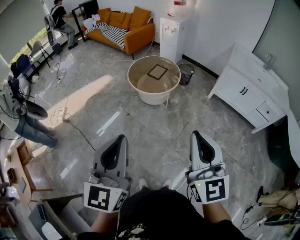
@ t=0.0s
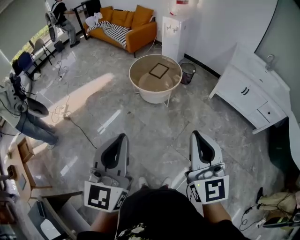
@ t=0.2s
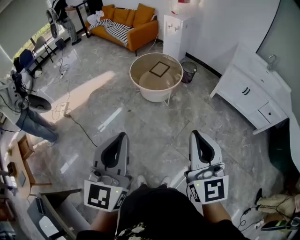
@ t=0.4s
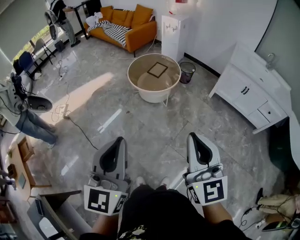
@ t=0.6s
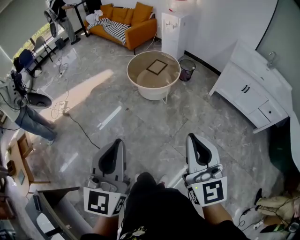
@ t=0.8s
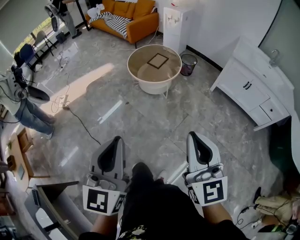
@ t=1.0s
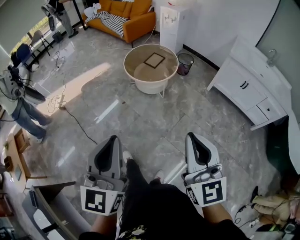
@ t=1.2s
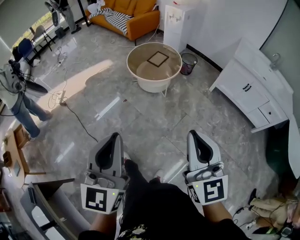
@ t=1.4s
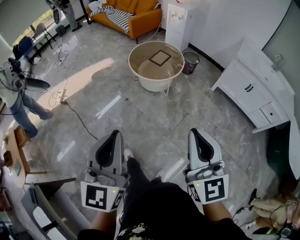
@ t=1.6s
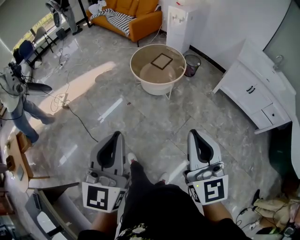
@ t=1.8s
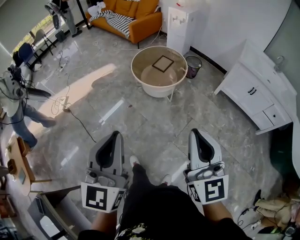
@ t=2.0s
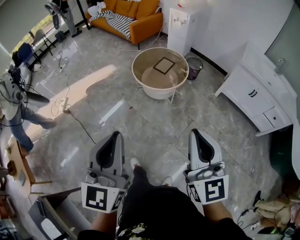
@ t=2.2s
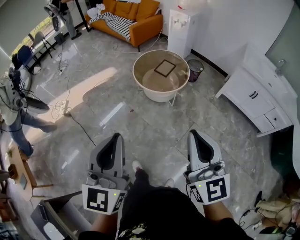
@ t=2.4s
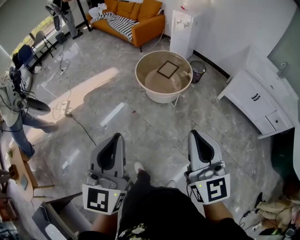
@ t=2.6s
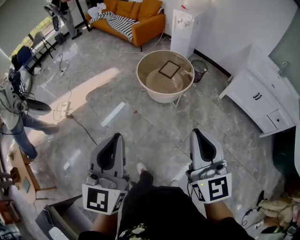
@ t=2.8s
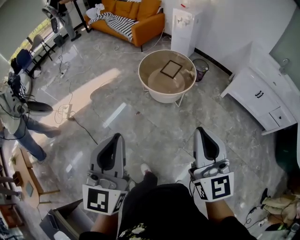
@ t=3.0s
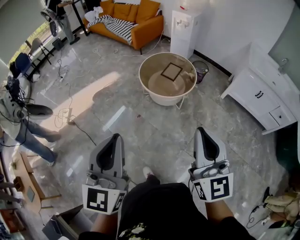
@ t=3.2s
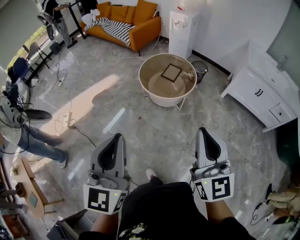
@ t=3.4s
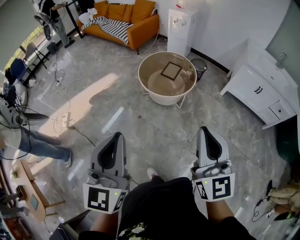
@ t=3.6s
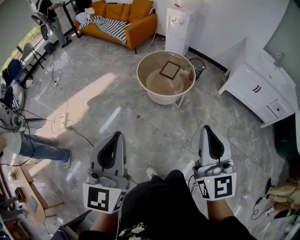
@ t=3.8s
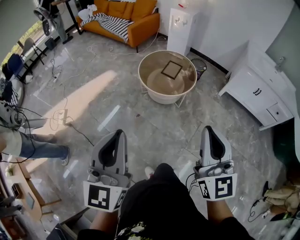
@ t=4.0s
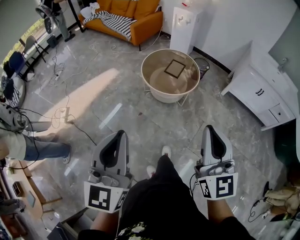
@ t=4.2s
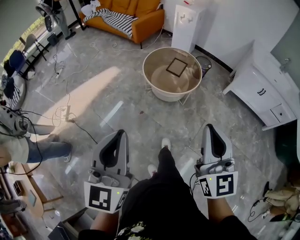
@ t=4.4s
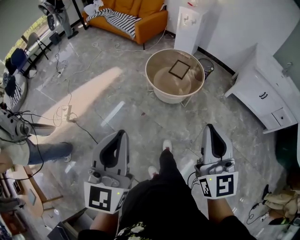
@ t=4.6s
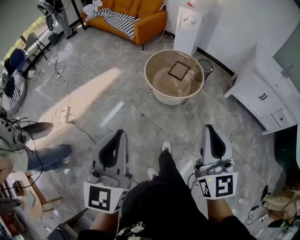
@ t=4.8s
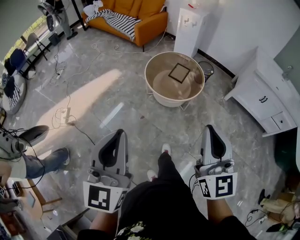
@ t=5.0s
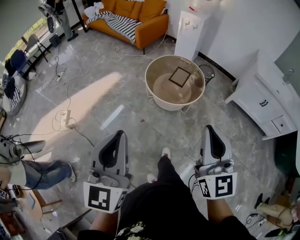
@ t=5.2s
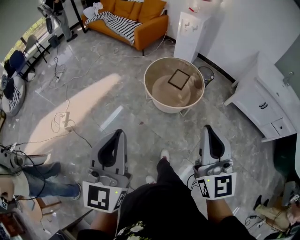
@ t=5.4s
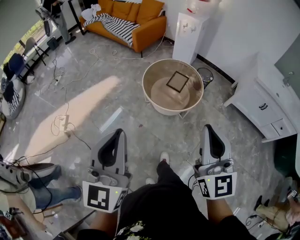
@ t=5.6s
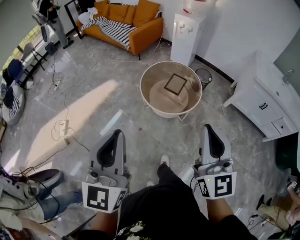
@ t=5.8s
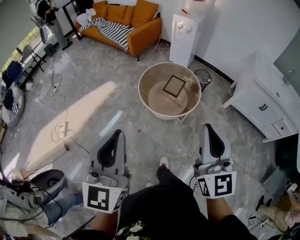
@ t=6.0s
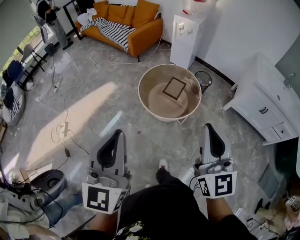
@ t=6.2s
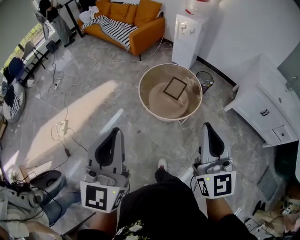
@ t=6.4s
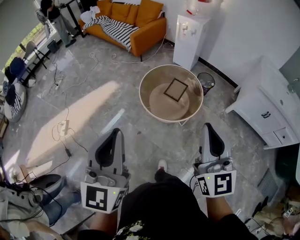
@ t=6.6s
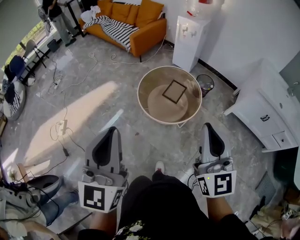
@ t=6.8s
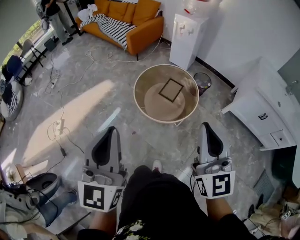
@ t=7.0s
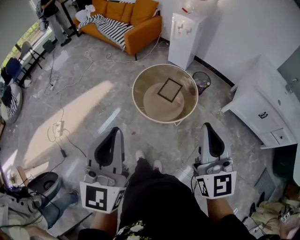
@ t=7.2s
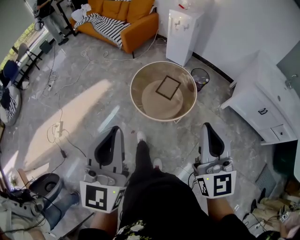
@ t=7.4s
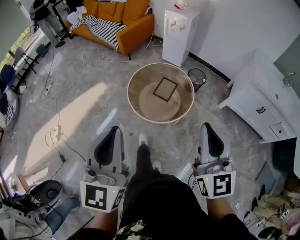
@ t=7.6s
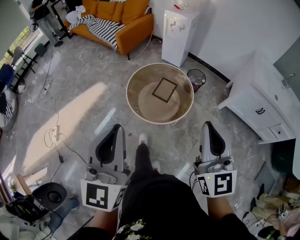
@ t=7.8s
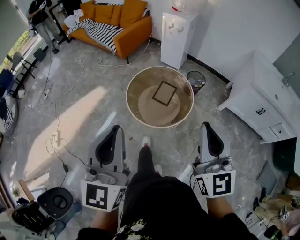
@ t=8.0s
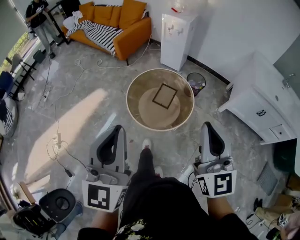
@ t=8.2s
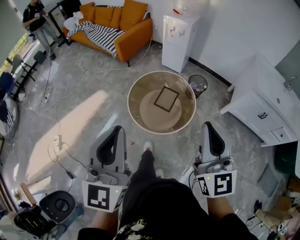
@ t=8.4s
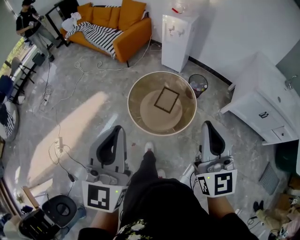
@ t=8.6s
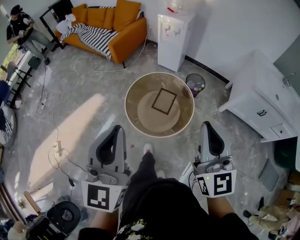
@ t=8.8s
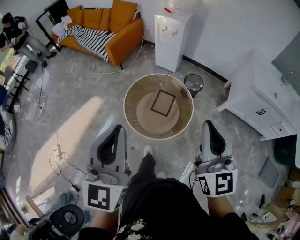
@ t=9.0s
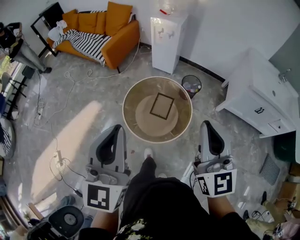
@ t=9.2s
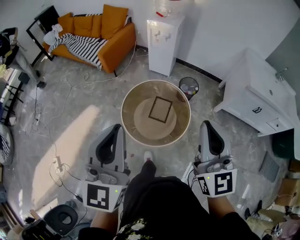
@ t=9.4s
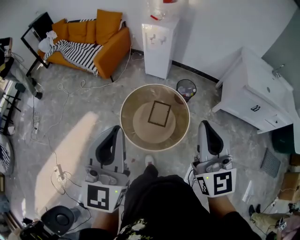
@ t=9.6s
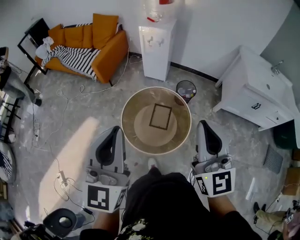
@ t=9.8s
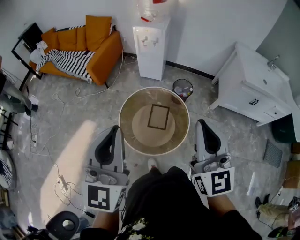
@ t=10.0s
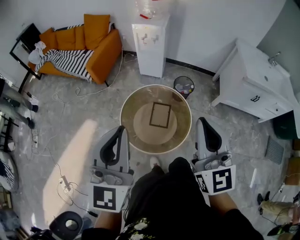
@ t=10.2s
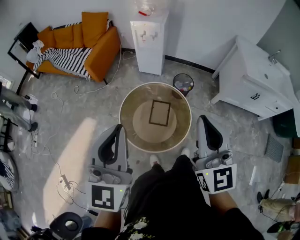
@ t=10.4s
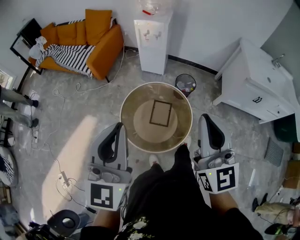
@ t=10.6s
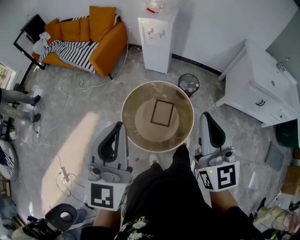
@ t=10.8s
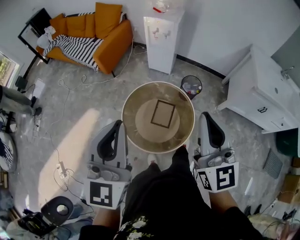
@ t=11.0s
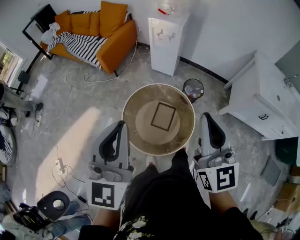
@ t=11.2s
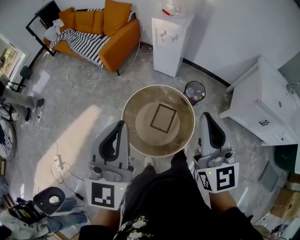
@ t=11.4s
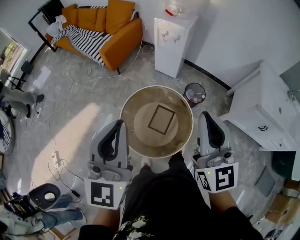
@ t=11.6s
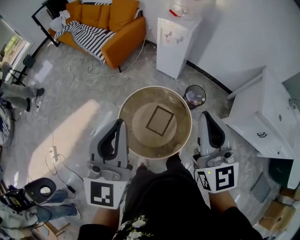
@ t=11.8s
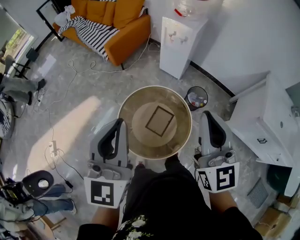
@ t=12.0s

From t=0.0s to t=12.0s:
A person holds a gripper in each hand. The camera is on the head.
From t=0.0s to t=1.6s: The right gripper changes place by about 5 cm, while the left gripper changes place by roughly 5 cm.
From t=1.6s to t=3.0s: Both grippers travel together forward and to the left, some 20 cm.
From t=3.0s to t=4.4s: The two grippers go roughly 15 cm to the left and forward.
From t=4.4s to t=6.0s: The two grippers go about 20 cm forward.
From t=6.0s to t=7.6s: Both grippers travel together forward and to the right, about 15 cm.
From t=7.6s to t=9.0s: Both grippers move forward, about 20 cm.
From t=9.0s to t=10.4s: The right gripper travels forward and to the left by some 15 cm, while the left gripper heads forward, covering roughly 15 cm.
From t=10.4s to t=12.0s: The two grippers go about 15 cm forward and to the right. The left gripper changes its angle by approximately 20 degrees. Meanwhile the right gripper turns by approximately 20 degrees.

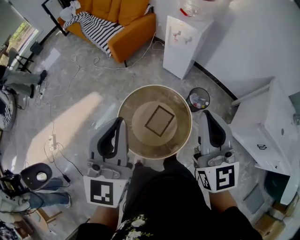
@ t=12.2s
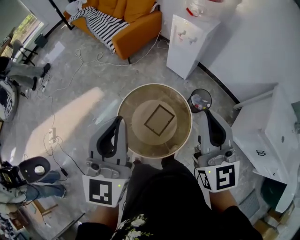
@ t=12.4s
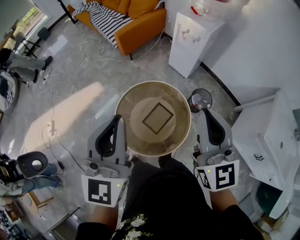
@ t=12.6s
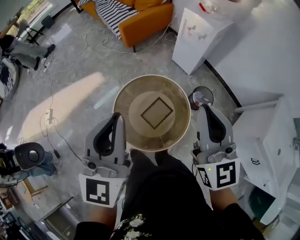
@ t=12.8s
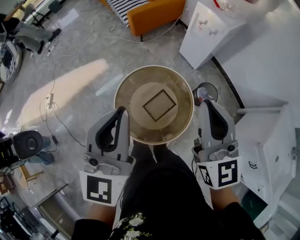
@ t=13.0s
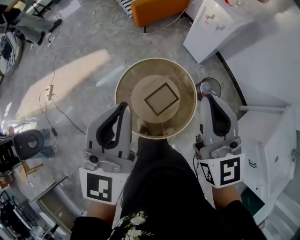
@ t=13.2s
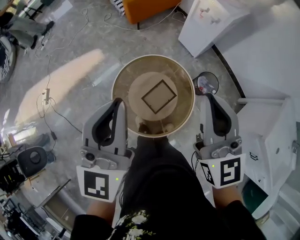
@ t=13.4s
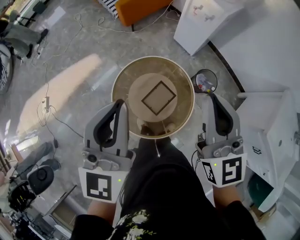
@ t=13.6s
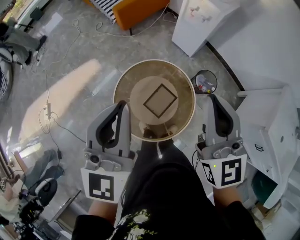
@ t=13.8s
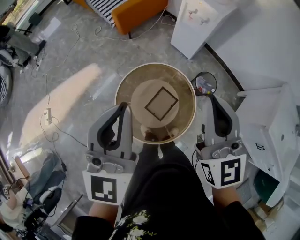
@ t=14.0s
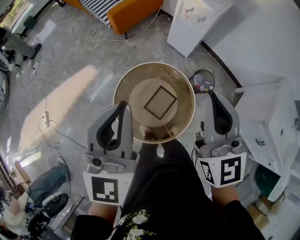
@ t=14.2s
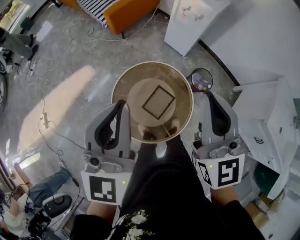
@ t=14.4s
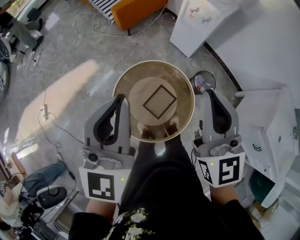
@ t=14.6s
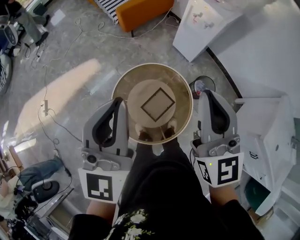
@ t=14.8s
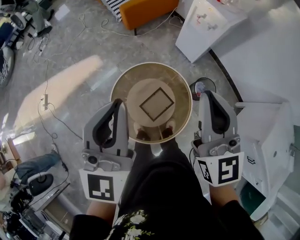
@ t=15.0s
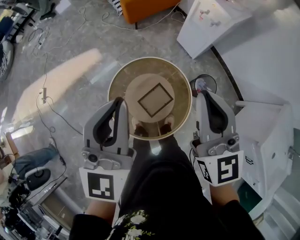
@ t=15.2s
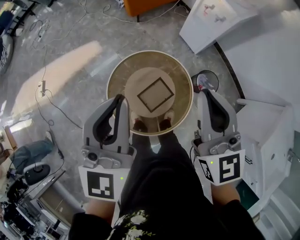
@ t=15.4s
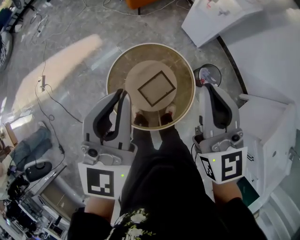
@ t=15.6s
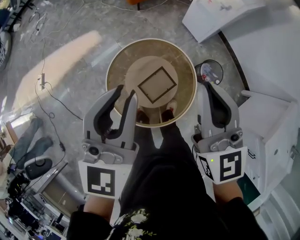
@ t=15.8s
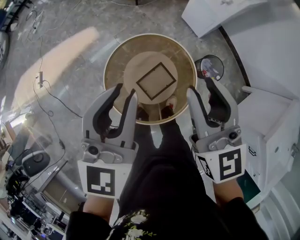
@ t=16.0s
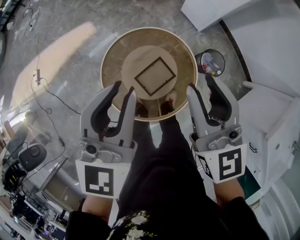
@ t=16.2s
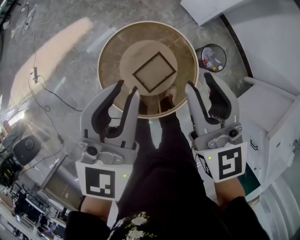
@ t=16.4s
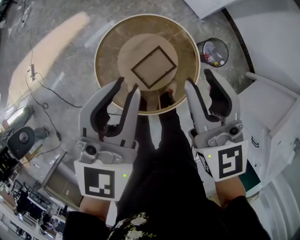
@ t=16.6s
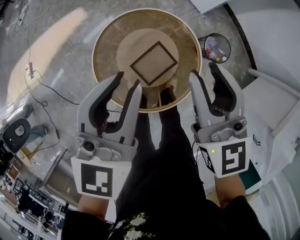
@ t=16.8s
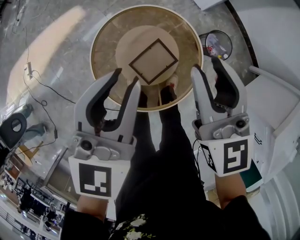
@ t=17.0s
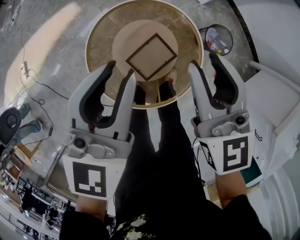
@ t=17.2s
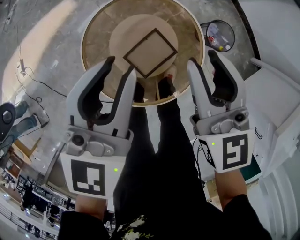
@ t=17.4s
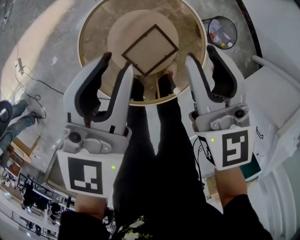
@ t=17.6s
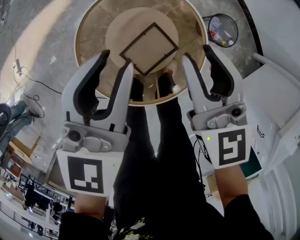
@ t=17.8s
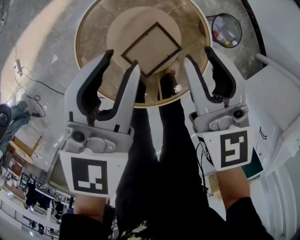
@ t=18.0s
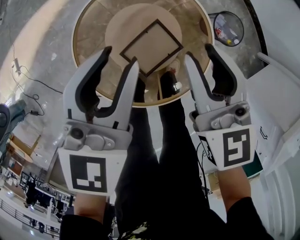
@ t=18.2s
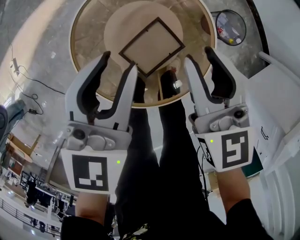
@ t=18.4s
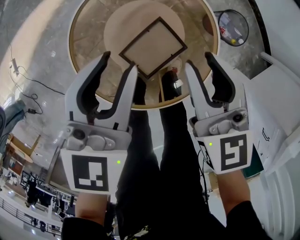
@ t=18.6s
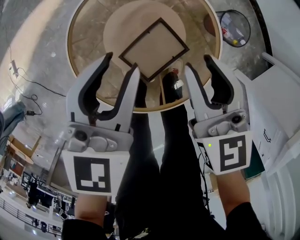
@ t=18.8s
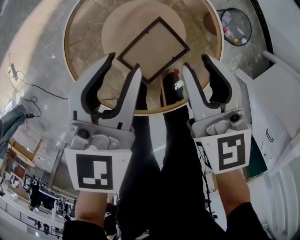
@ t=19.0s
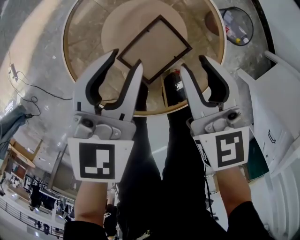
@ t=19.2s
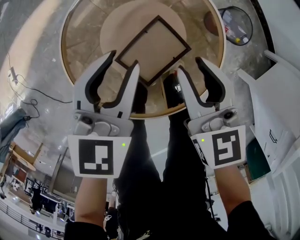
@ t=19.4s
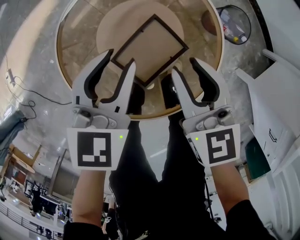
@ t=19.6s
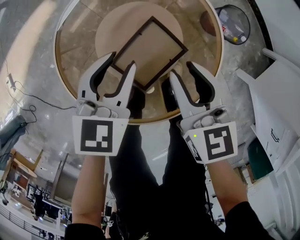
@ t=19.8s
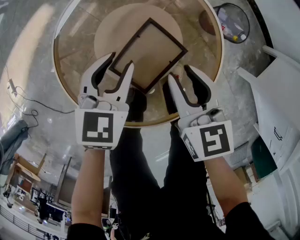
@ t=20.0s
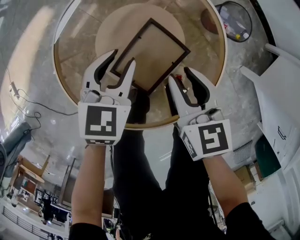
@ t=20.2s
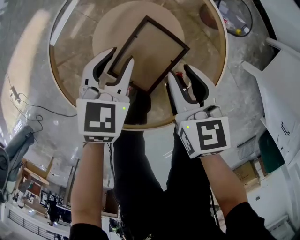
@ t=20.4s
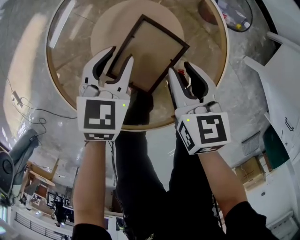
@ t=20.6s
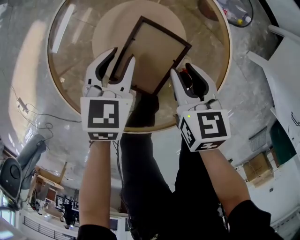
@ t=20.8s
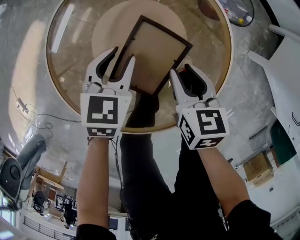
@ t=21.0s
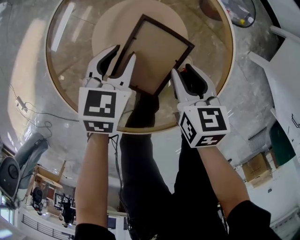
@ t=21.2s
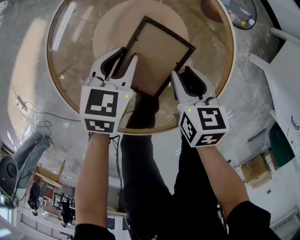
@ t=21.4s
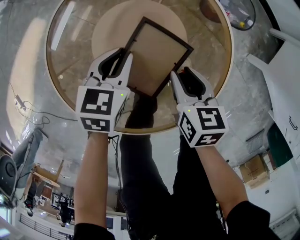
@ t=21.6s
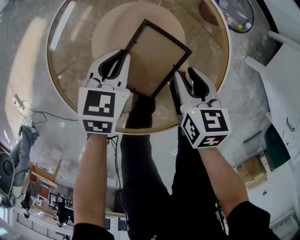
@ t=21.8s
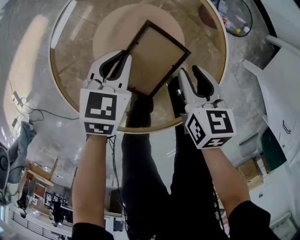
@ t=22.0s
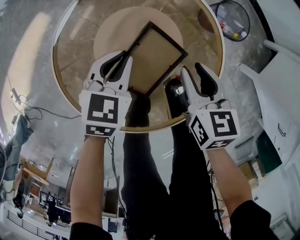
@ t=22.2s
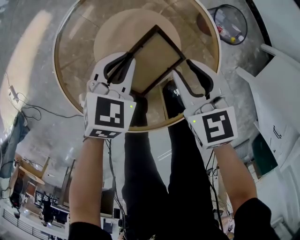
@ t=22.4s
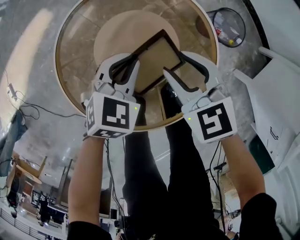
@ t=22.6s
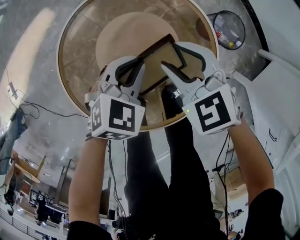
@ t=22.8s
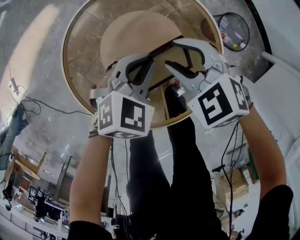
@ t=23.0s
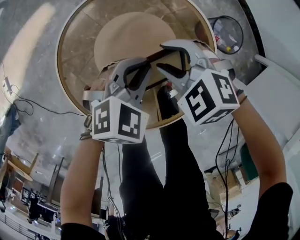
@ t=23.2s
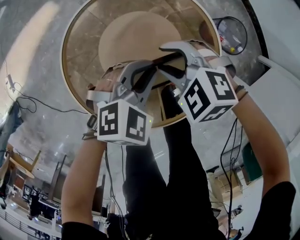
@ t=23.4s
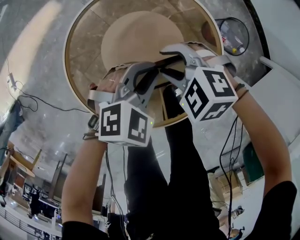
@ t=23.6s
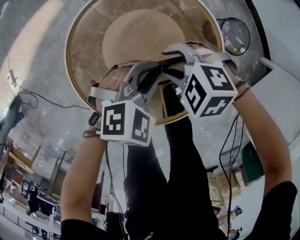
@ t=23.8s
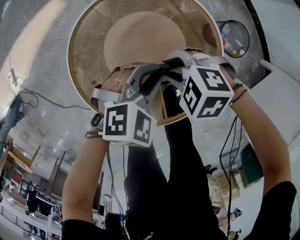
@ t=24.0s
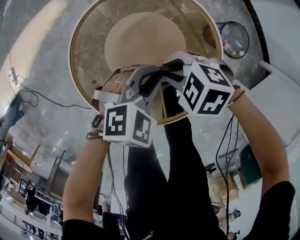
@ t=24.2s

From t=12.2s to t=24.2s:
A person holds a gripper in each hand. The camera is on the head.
From t=12.2s to t=13.8s: Both grippers move forward and downward, approximately 10 cm.
From t=13.8s to t=15.2s: The right gripper changes place by approximately 5 cm.
From t=15.2s to t=16.6s: The grippers both shift downward by some 20 cm. The right gripper opens up.
From t=16.6s to t=18.2s: The two grippers go about 20 cm downward.
From t=18.2s to t=19.8s: Both grippers move downward, approximately 20 cm.
From t=19.8s to t=21.2s: The two grippers go roughly 15 cm downward. The right gripper swivels about 30 degrees.
From t=21.2s to t=22.6s: The right gripper heads upward, forward and to the left, covering approximately 15 cm, and rolls counterclockwise, seen from behind, by roughly 40 degrees; the left gripper shifts roughly 10 cm upward, and closes.
From t=22.6s to t=24.2s: The left gripper is displaced upward by roughly 5 cm. The right gripper shifts by roughly 5 cm, swivels roughly 50 degrees, and closes.
